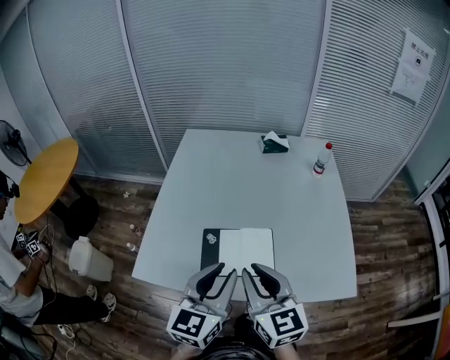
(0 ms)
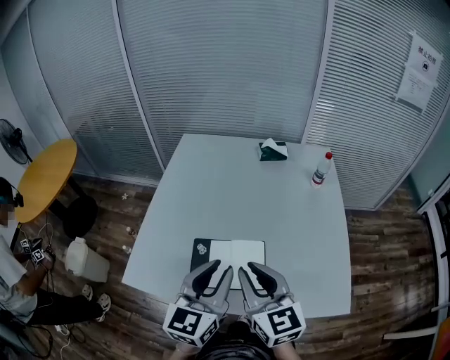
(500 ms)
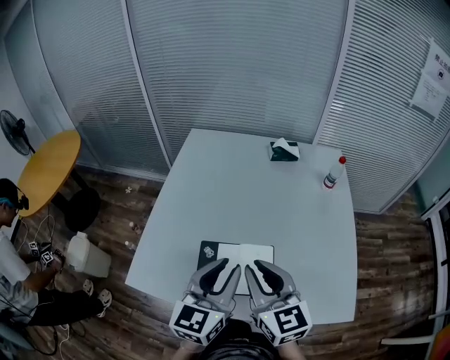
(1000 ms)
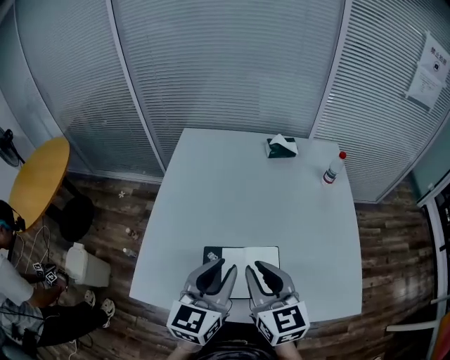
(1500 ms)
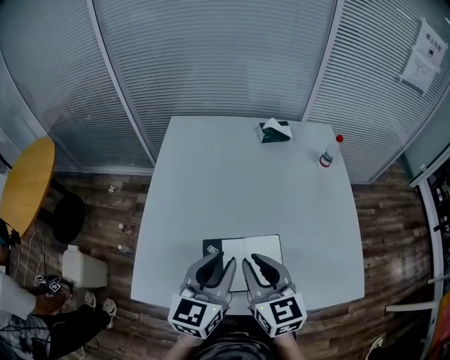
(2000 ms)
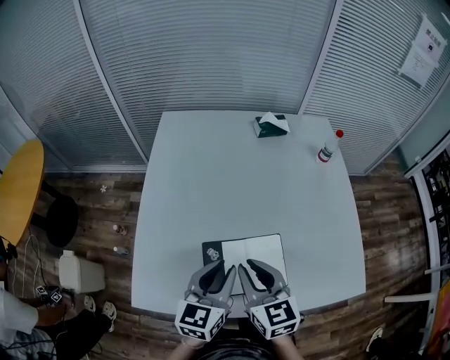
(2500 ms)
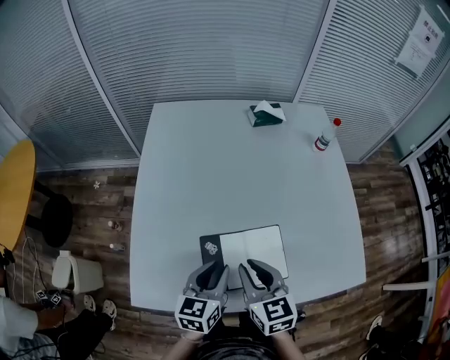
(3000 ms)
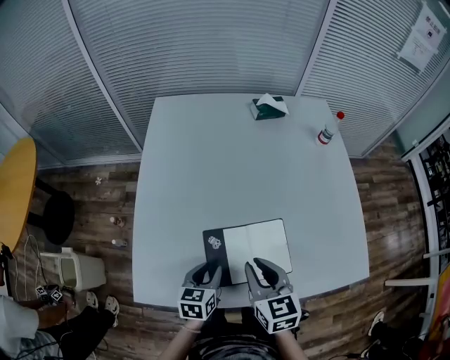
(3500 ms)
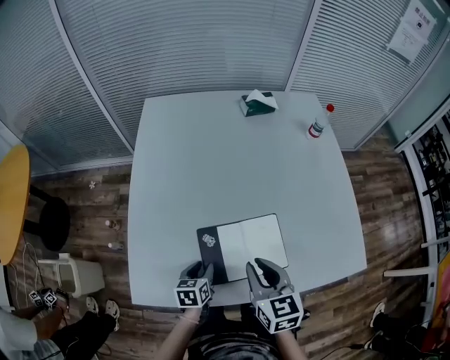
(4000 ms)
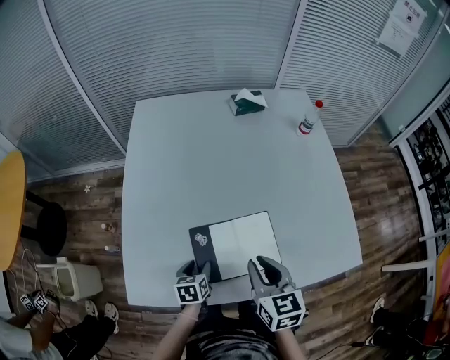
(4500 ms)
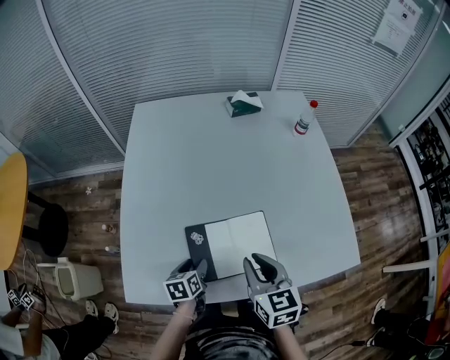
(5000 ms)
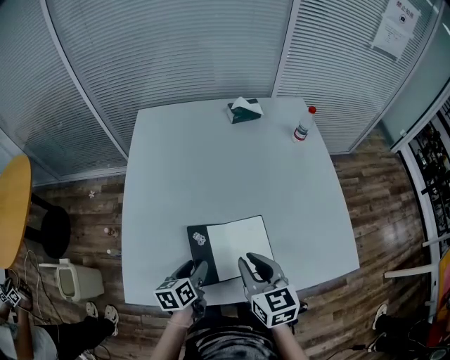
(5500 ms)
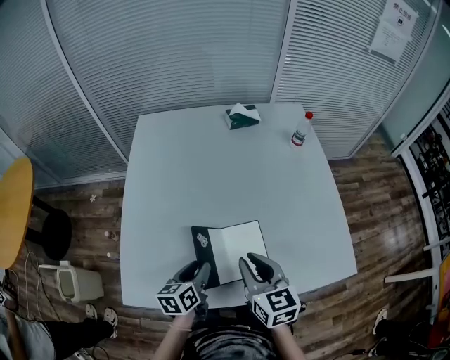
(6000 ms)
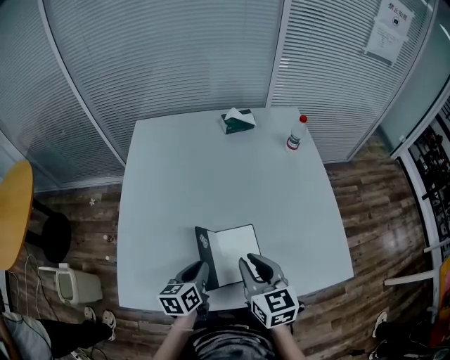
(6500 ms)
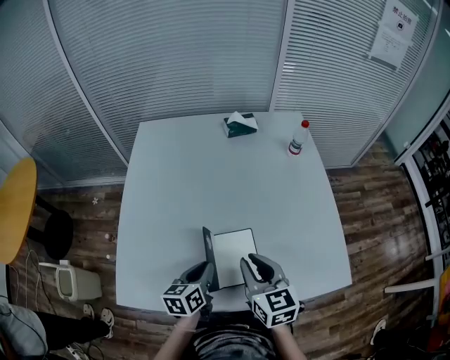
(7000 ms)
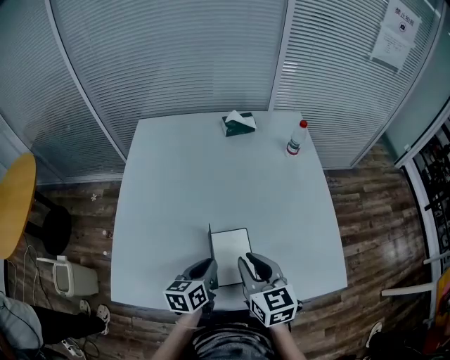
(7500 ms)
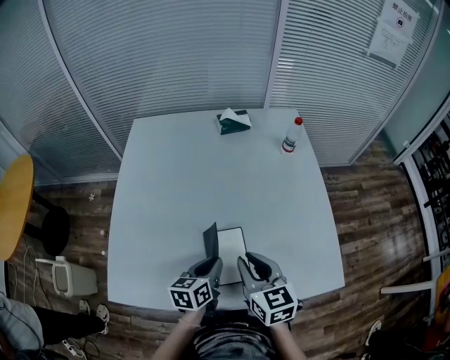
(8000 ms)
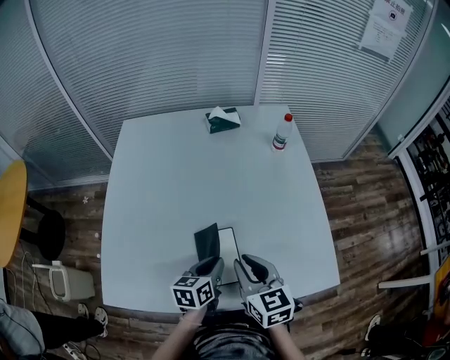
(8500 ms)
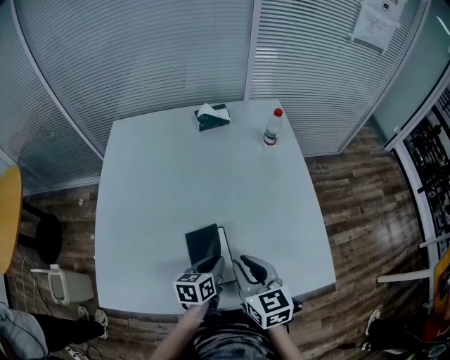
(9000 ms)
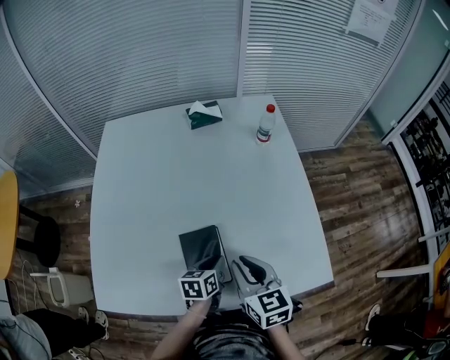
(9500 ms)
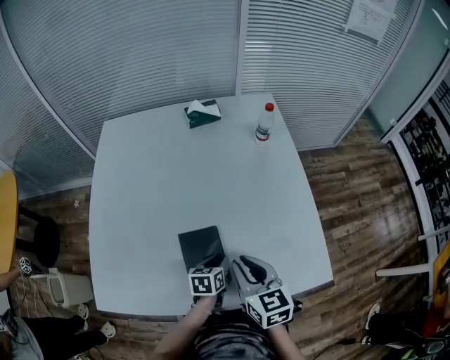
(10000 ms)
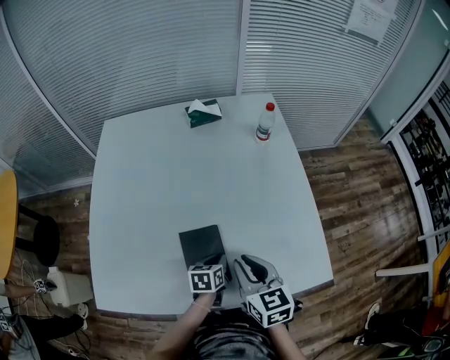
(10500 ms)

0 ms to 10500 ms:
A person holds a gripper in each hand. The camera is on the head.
0 ms to 2000 ms: The right gripper is displaced forward and downward by some 15 cm, while the left gripper heads forward, covering roughly 15 cm.
2000 ms to 4000 ms: The right gripper travels downward by some 10 cm, while the left gripper travels downward by roughly 30 cm, and tilts its fingers some 30 degrees downward.
4000 ms to 6500 ms: The right gripper travels to the right by approximately 5 cm. The left gripper moves upward and to the right, some 15 cm.
6500 ms to 8500 ms: The left gripper goes approximately 15 cm to the right; the right gripper goes roughly 5 cm to the right.
8500 ms to 10500 ms: The left gripper goes some 10 cm downward and to the right. Meanwhile the right gripper travels to the right by some 5 cm.

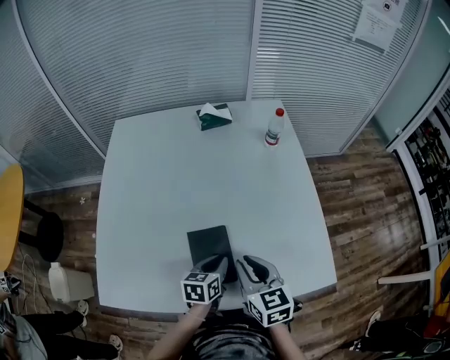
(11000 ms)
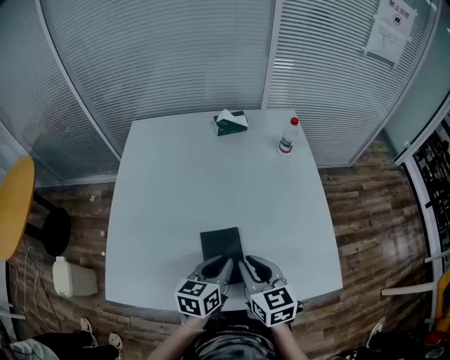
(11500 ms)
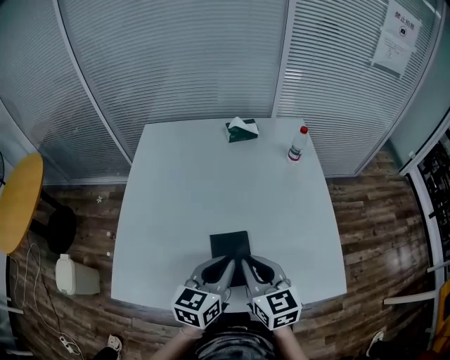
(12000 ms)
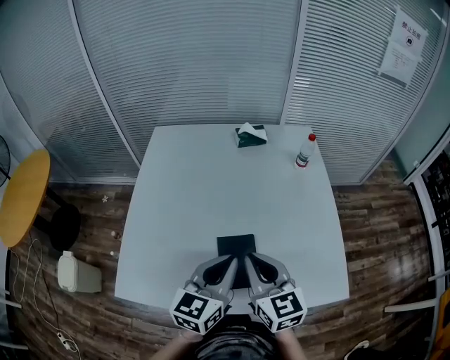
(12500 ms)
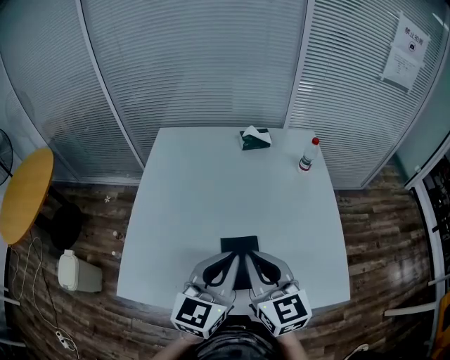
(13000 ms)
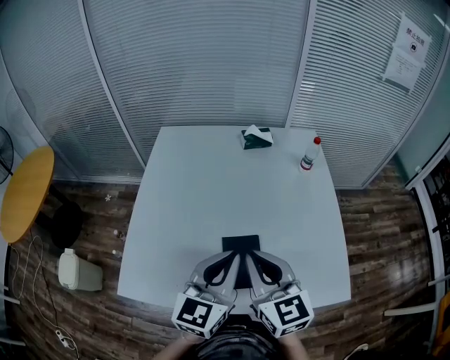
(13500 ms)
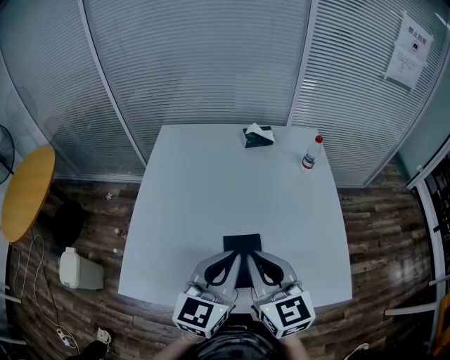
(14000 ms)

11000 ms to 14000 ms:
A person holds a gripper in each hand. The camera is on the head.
11000 ms to 12500 ms: The left gripper travels upward by roughly 20 cm, and changes its angle by some 30 degrees. The right gripper is displaced upward and to the left by some 15 cm.
12500 ms to 14000 ms: The right gripper moves some 5 cm.

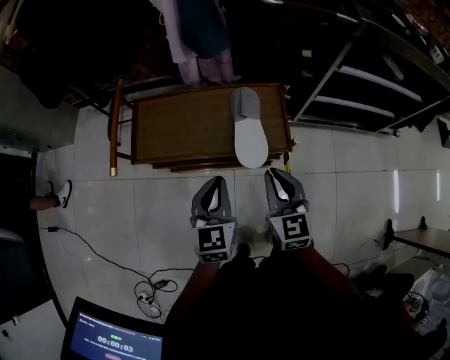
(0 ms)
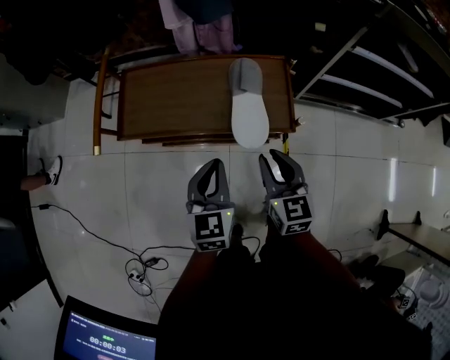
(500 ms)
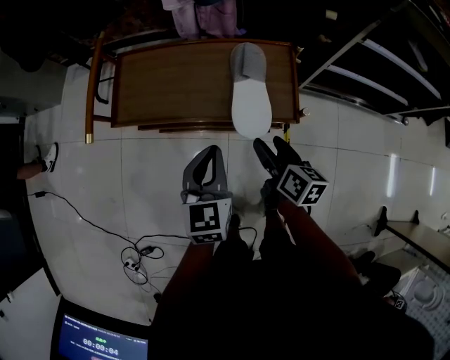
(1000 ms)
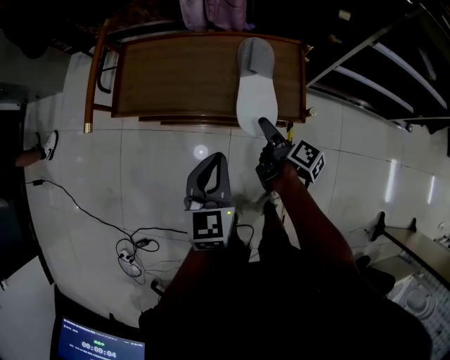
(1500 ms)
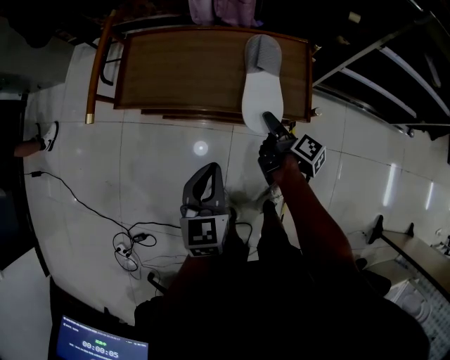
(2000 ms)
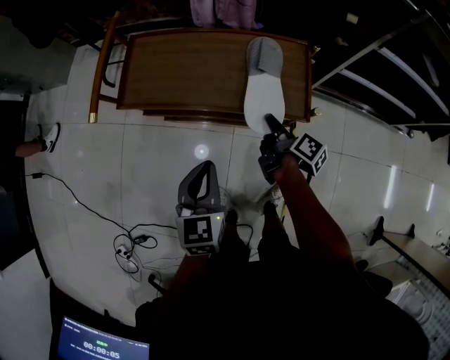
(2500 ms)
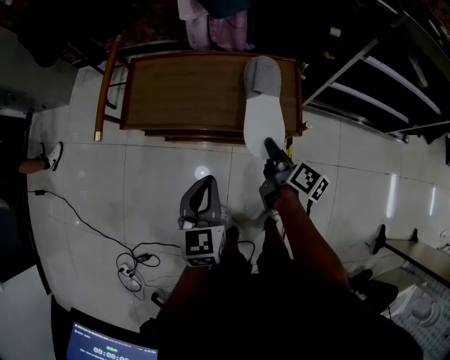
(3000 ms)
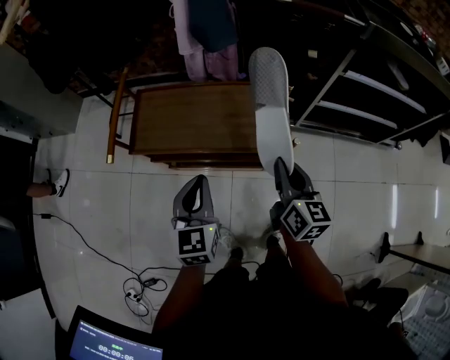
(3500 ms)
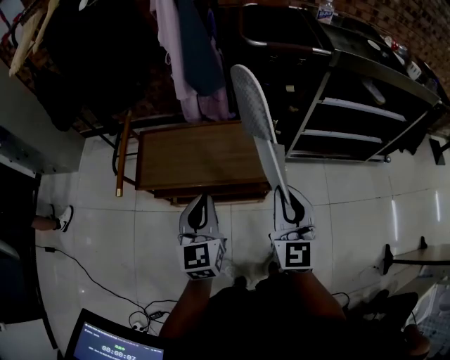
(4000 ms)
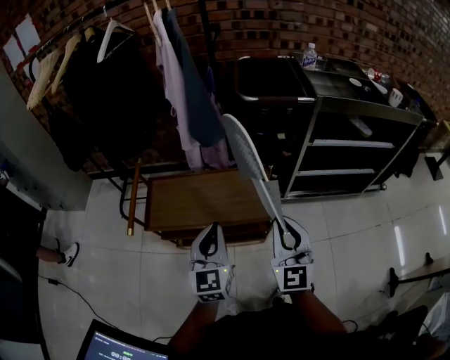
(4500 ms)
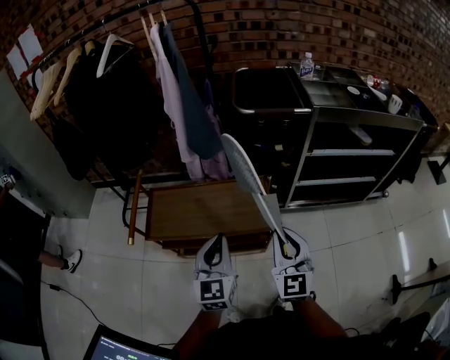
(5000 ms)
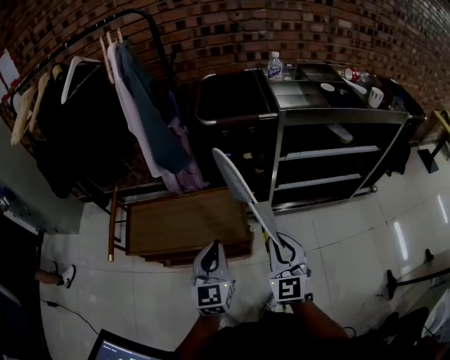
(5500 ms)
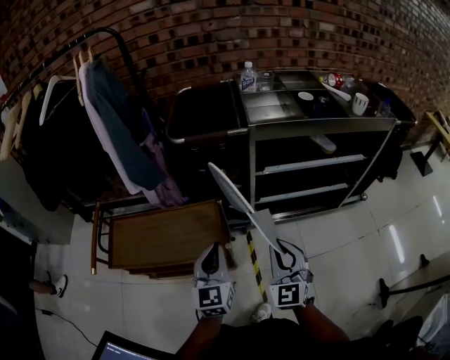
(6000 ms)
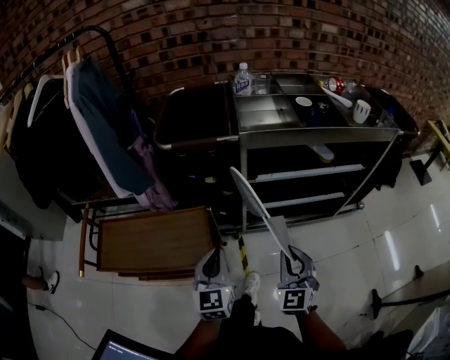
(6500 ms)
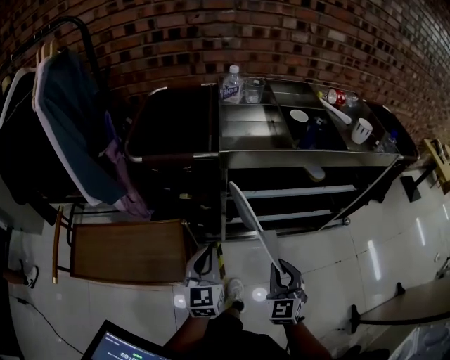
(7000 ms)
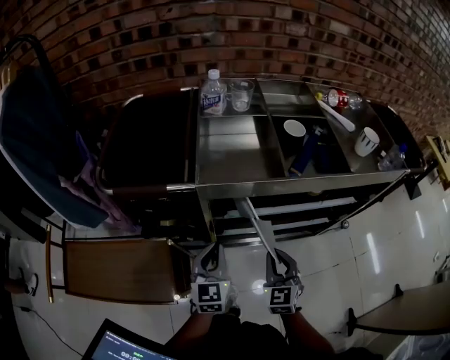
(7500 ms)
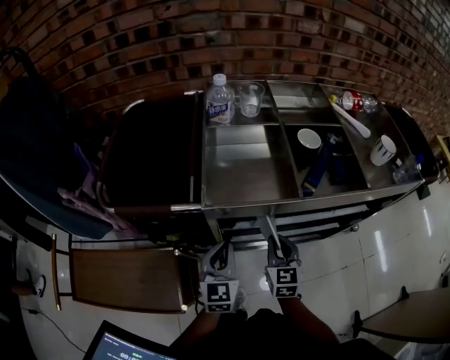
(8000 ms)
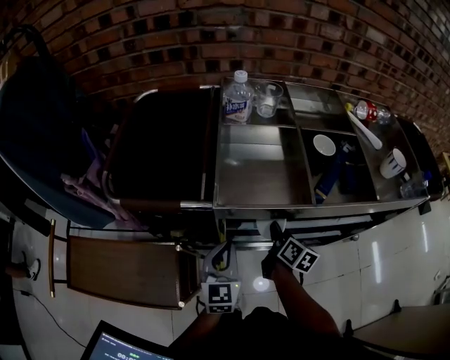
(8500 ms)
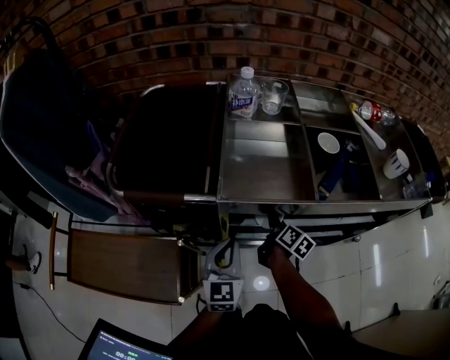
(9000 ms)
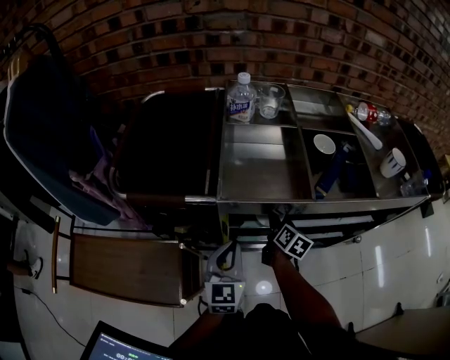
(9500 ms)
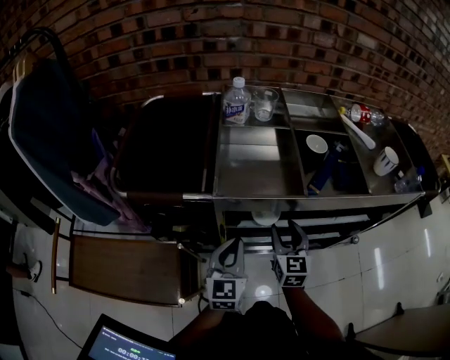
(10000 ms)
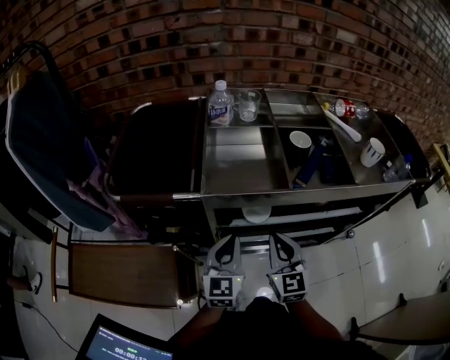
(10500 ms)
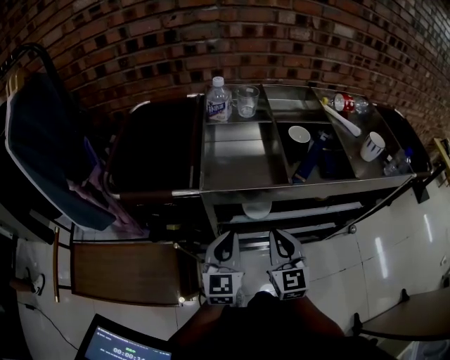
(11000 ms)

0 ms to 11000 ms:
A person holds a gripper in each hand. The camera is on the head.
0 ms to 2000 ms: The right gripper heads downward and forward, covering about 20 cm, rolls clockwise, seen from behind, by approximately 90 degrees, and opens its fingers; the left gripper travels downward by about 10 cm.
2000 ms to 3500 ms: The left gripper is displaced upward by about 10 cm. The right gripper is displaced upward by approximately 20 cm, rolls counterclockwise, seen from behind, by roughly 60 degrees, and closes.
3500 ms to 5500 ms: The left gripper goes some 20 cm to the right and upward, while the right gripper moves upward and to the right, some 15 cm, and rotates around the line of its fingers by approximately 40 degrees, counterclockwise from behind.
5500 ms to 7500 ms: The left gripper moves forward and to the right, roughly 40 cm; the right gripper shifts about 40 cm to the right and forward.
7500 ms to 9000 ms: The right gripper is displaced forward and downward by about 20 cm, and rotates around the line of its fingers by about 70 degrees, clockwise from behind.
9000 ms to 11000 ms: The left gripper moves roughly 5 cm. The right gripper goes approximately 20 cm upward and backward, rotates around the line of its fingers by some 60 degrees, counterclockwise from behind, and opens and closes again.

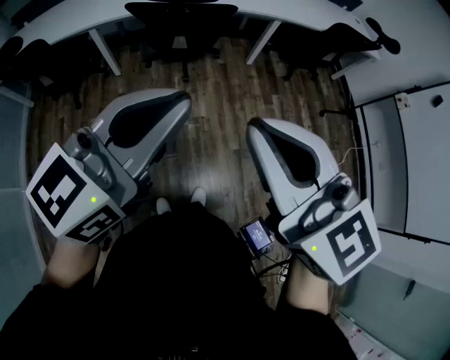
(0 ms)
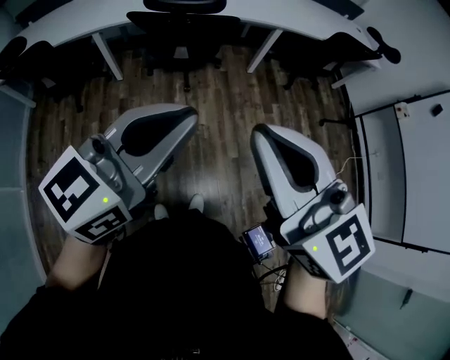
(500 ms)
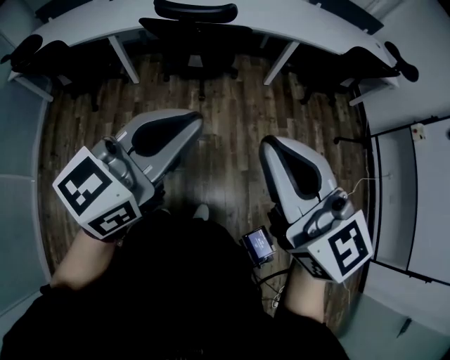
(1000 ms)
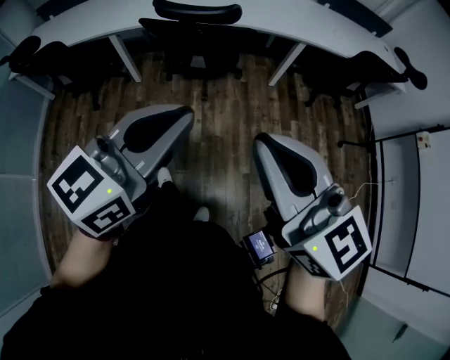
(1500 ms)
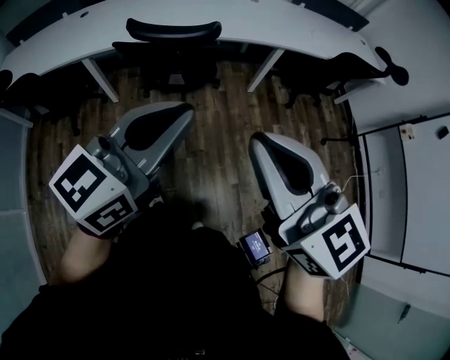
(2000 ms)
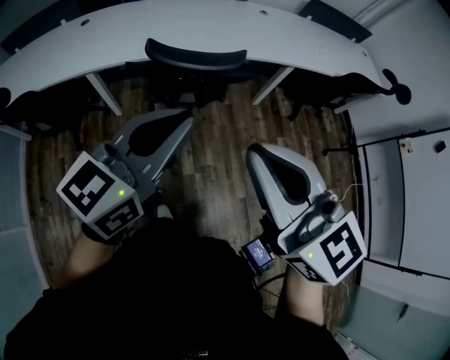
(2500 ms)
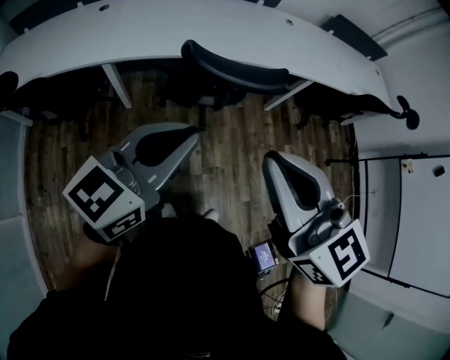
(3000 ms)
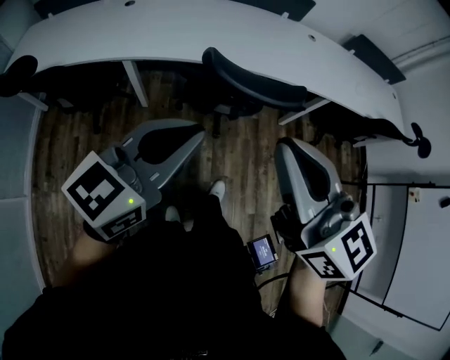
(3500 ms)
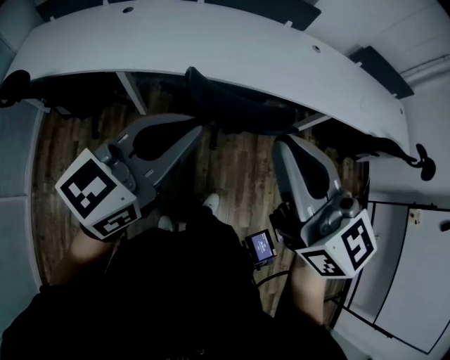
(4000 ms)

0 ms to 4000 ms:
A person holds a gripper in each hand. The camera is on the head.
0 ms to 2000 ms: The grippers both shift forward by roughly 20 cm.
2000 ms to 4000 ms: The two grippers go some 35 cm forward and to the left.
